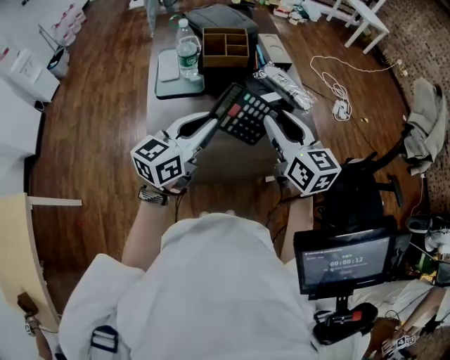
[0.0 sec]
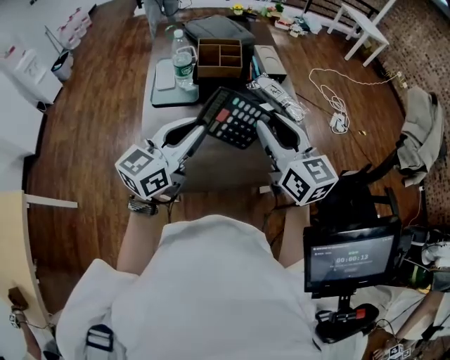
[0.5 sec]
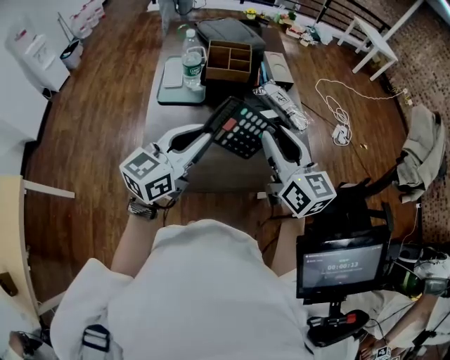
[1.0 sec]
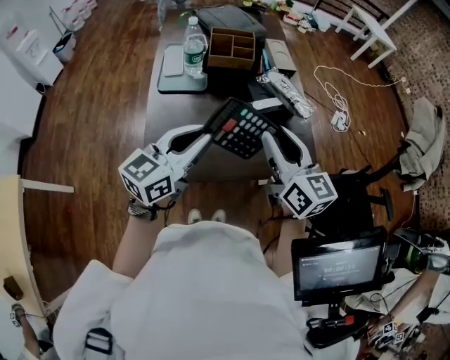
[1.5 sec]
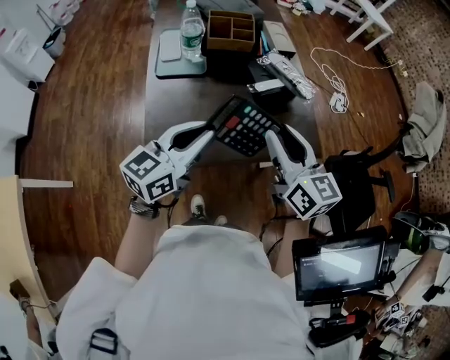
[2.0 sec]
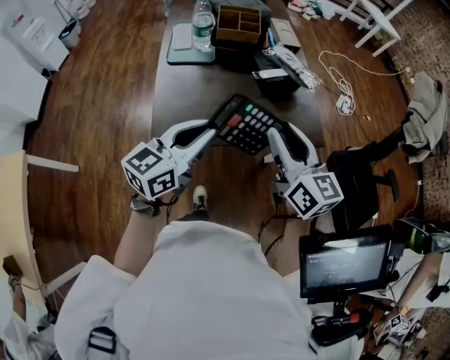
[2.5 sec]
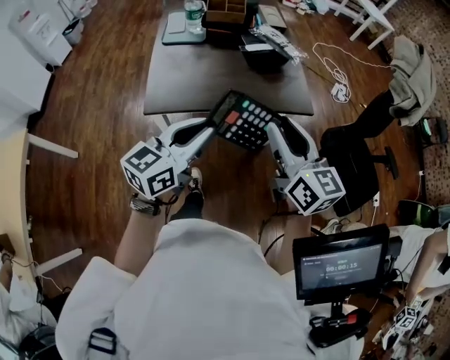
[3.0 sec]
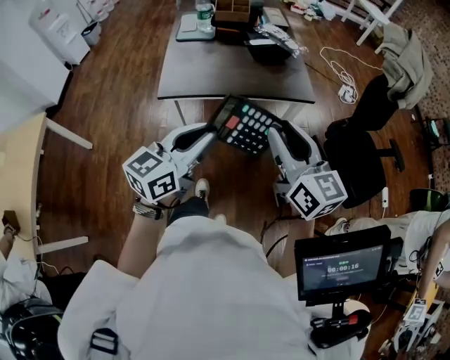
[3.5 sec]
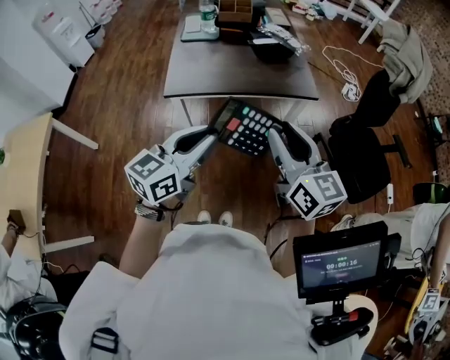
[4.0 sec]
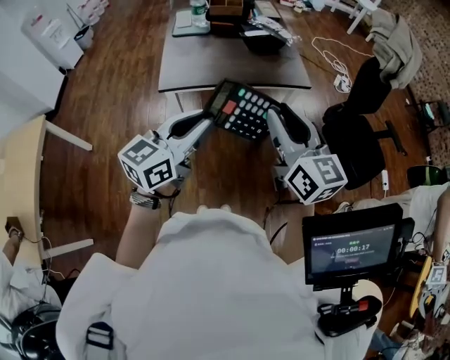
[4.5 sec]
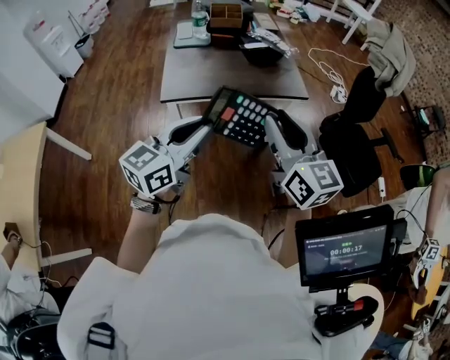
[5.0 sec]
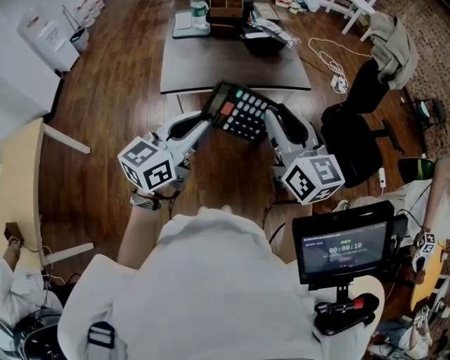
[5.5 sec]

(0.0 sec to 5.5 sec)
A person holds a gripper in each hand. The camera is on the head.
0.0 sec - 2.0 sec: Both grippers move backward, some 10 cm.
2.0 sec - 3.5 sec: Both grippers move backward and to the right, roughly 35 cm.
3.5 sec - 5.5 sec: The right gripper ends up some 5 cm from where it was.

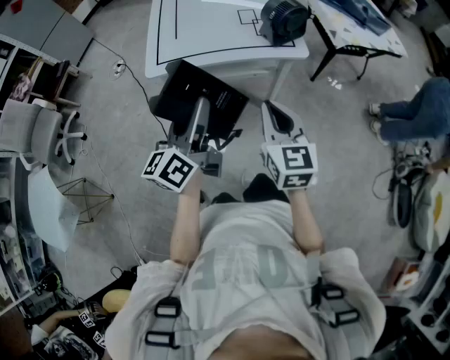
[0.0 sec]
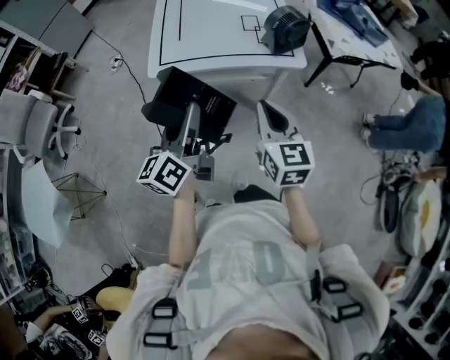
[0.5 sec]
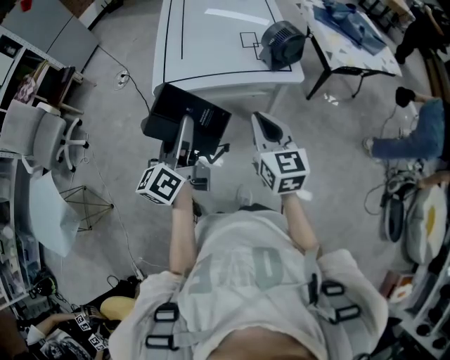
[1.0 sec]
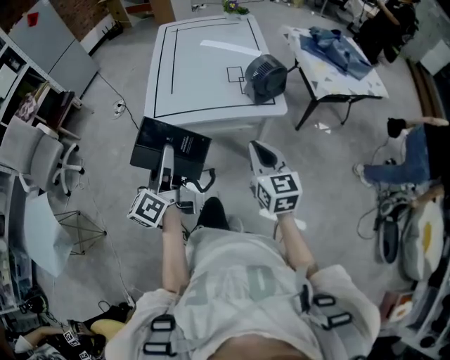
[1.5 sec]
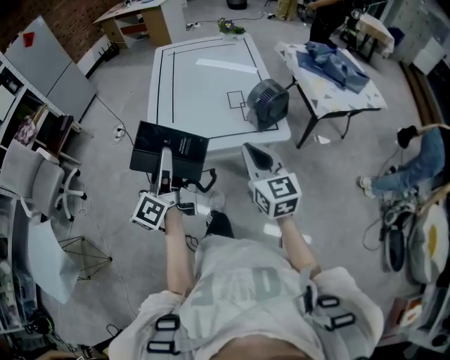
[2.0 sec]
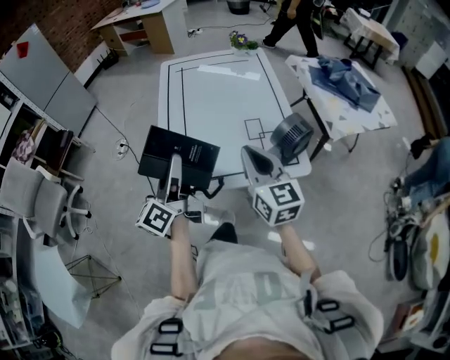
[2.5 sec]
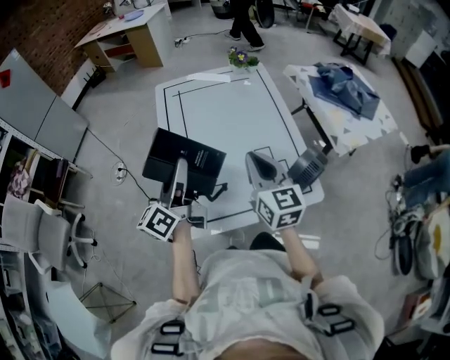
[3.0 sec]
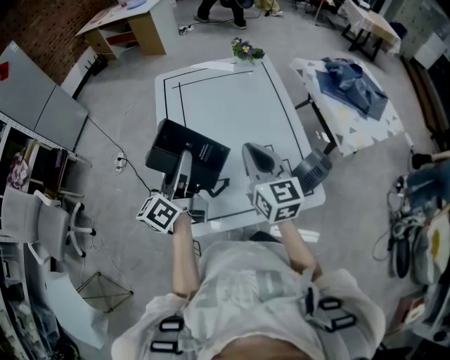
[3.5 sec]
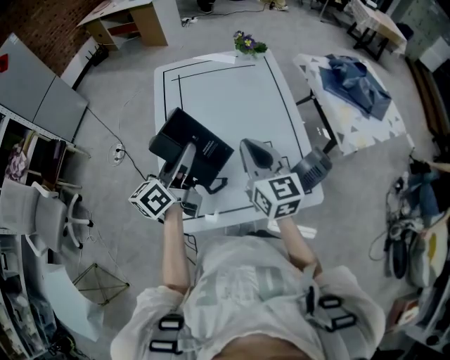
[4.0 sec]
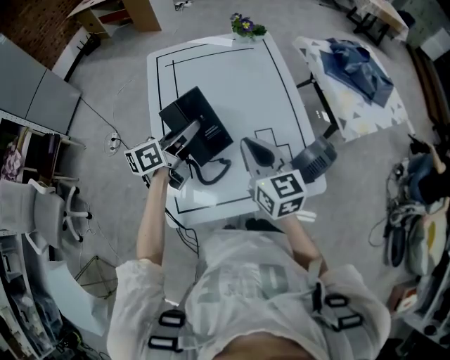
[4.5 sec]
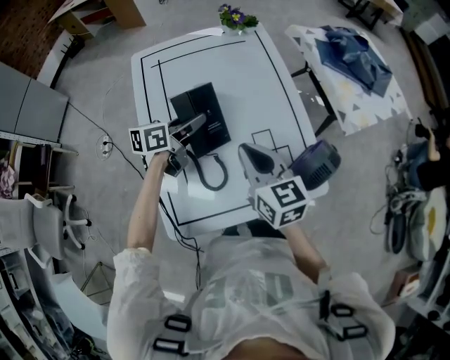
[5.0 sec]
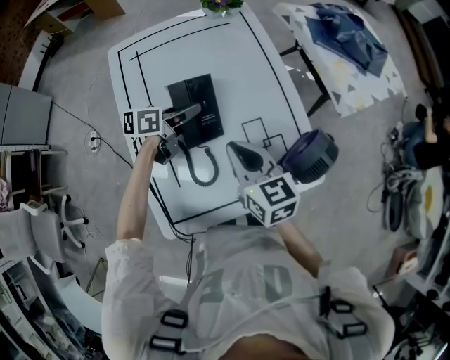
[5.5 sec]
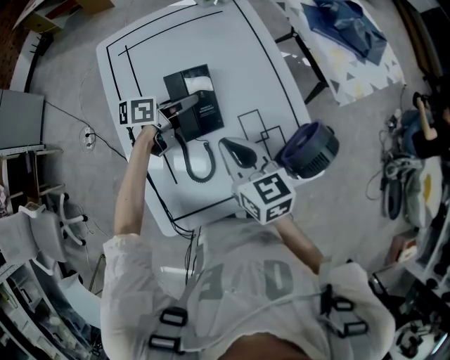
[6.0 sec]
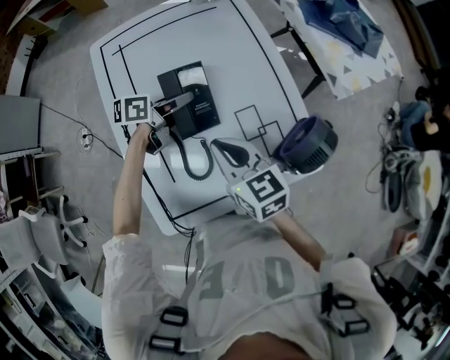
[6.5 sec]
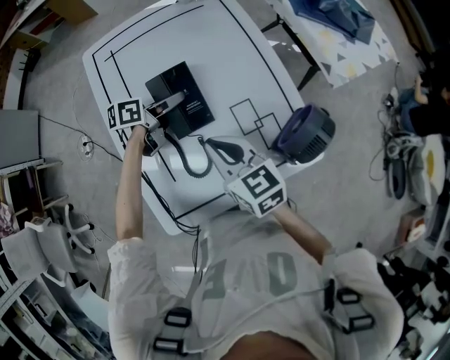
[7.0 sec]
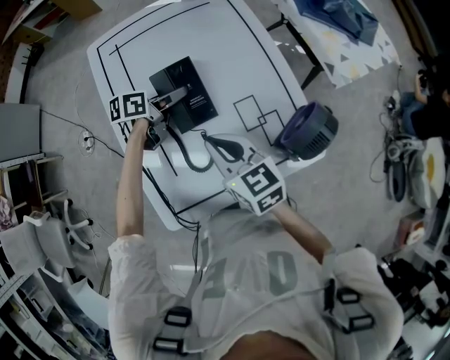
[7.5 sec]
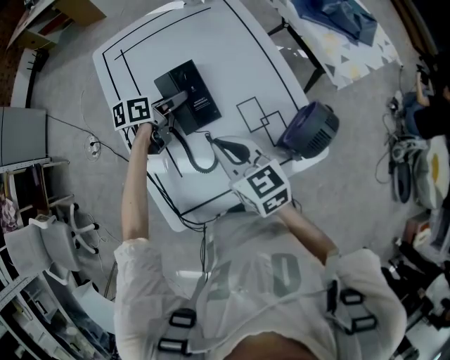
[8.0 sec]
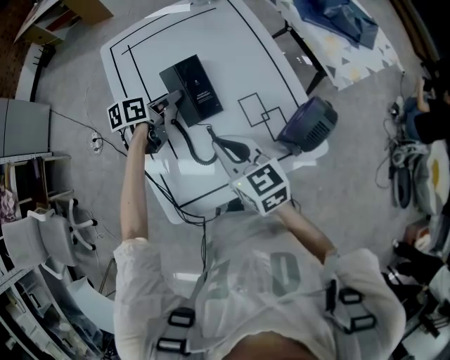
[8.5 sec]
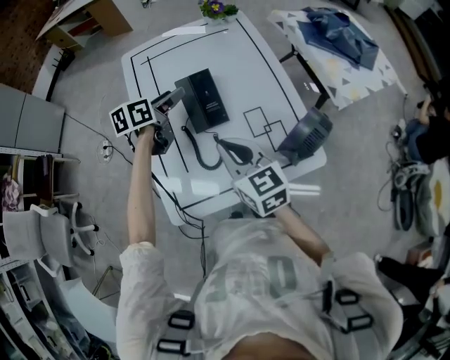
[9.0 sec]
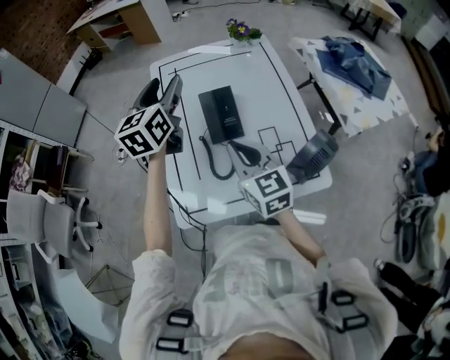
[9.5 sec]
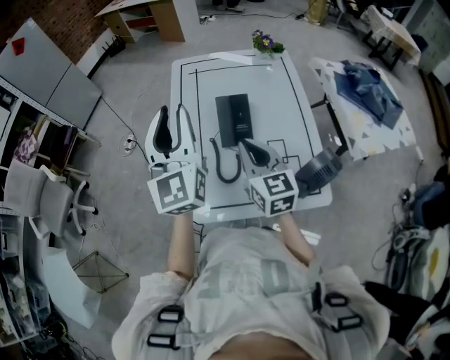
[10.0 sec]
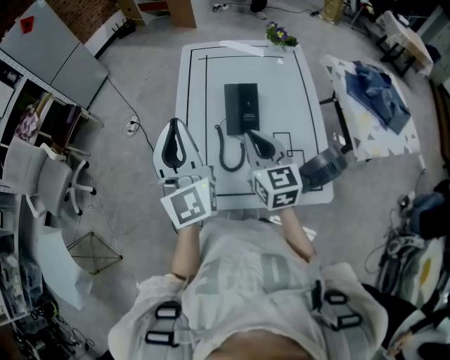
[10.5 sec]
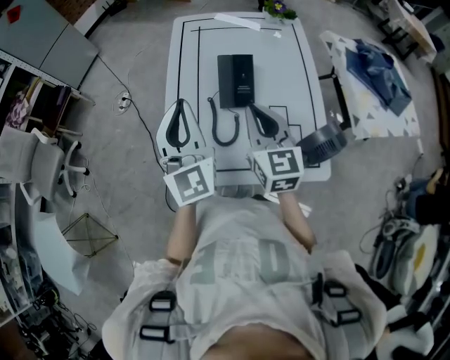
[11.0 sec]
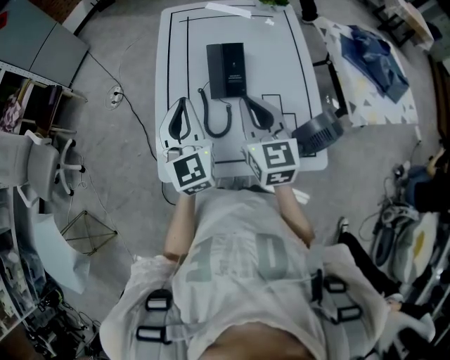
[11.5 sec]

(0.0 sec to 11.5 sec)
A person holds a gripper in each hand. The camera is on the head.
0.0 sec - 2.0 sec: The left gripper moves forward and to the left, approximately 15 cm; the right gripper moves forward and upward, about 15 cm.
2.0 sec - 4.0 sec: Both grippers move forward, approximately 35 cm. The left gripper swivels approximately 30 degrees.
4.0 sec - 6.0 sec: The left gripper goes approximately 25 cm forward and downward, and changes its angle by about 50 degrees; the right gripper heads downward, covering about 10 cm.
6.0 sec - 7.5 sec: The left gripper opens.
7.5 sec - 9.5 sec: The right gripper travels upward by roughly 5 cm. Meanwhile the left gripper goes approximately 25 cm upward, and rotates some 60 degrees.
9.5 sec - 11.5 sec: The left gripper shifts about 20 cm backward and downward, turns by about 30 degrees, and closes up.

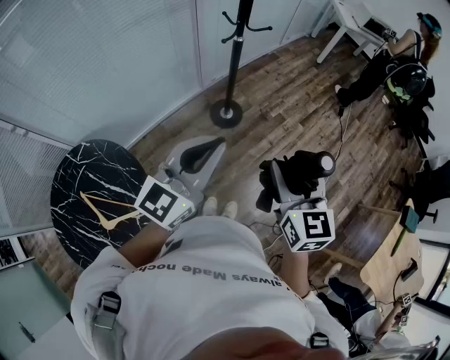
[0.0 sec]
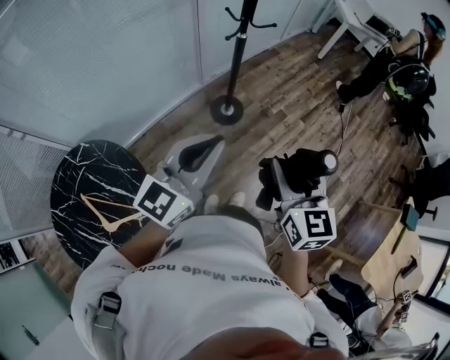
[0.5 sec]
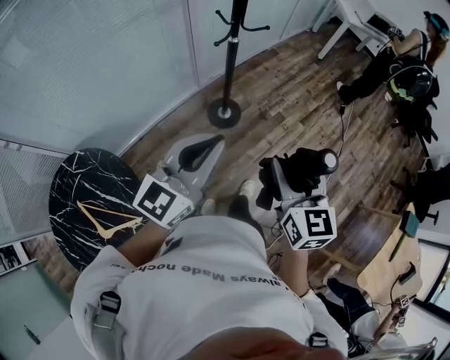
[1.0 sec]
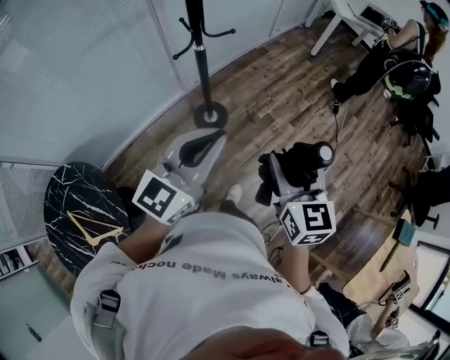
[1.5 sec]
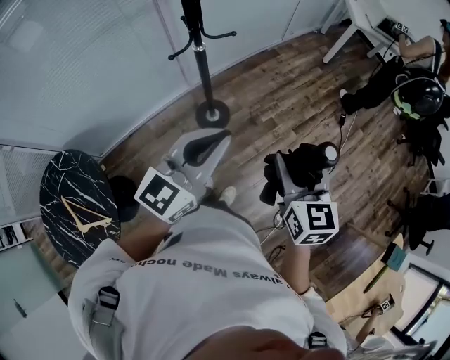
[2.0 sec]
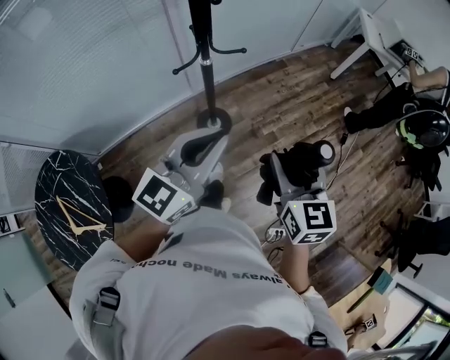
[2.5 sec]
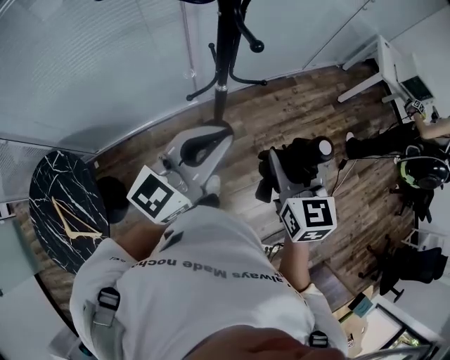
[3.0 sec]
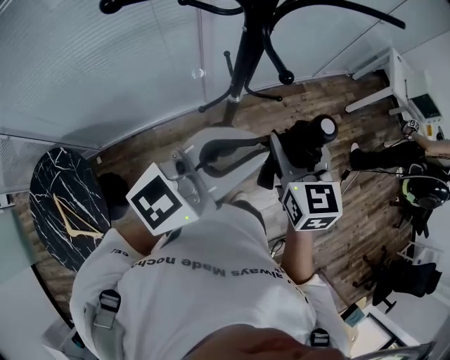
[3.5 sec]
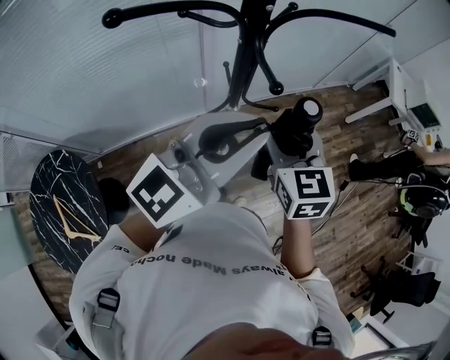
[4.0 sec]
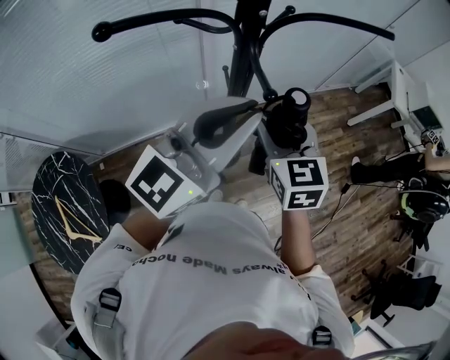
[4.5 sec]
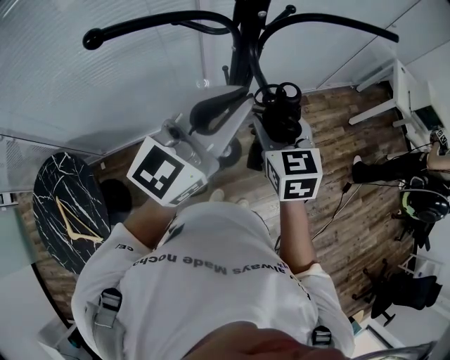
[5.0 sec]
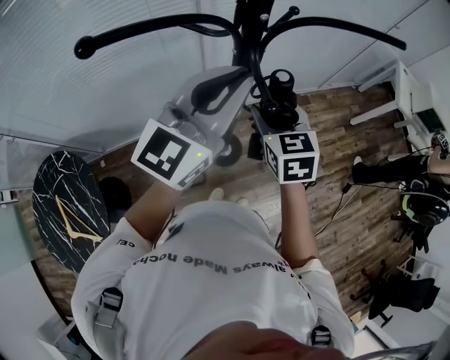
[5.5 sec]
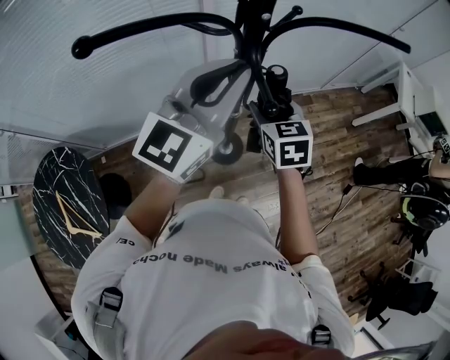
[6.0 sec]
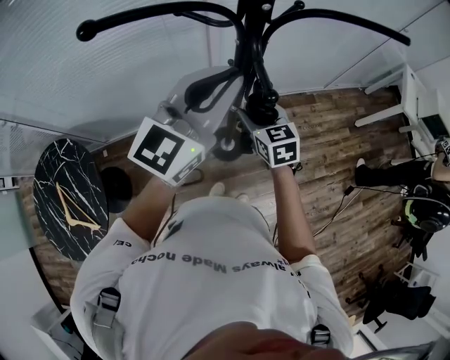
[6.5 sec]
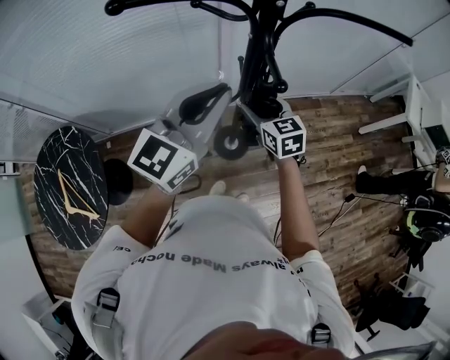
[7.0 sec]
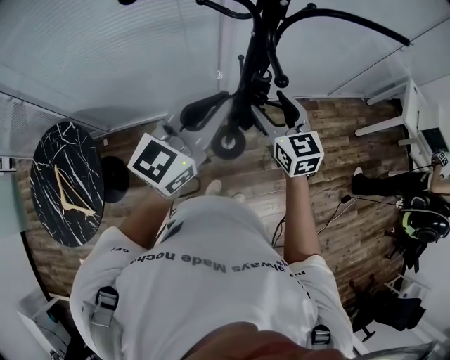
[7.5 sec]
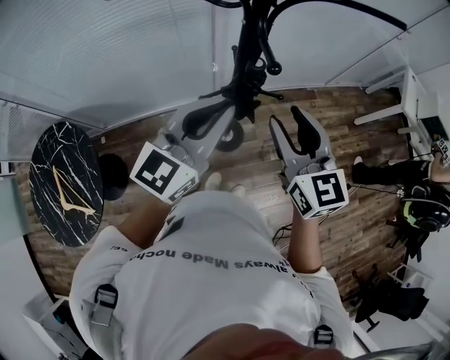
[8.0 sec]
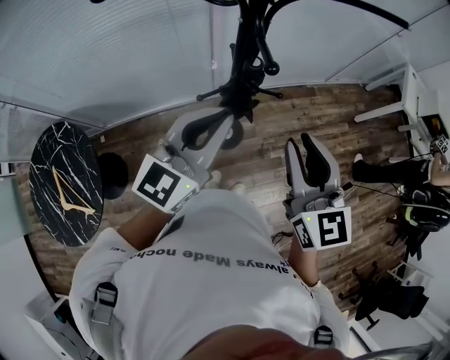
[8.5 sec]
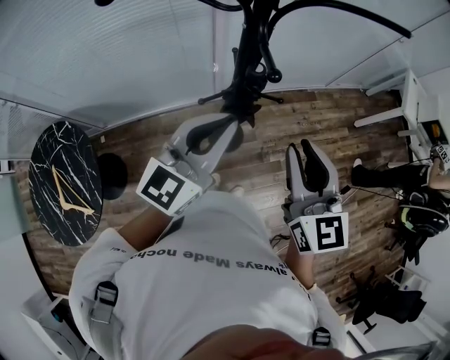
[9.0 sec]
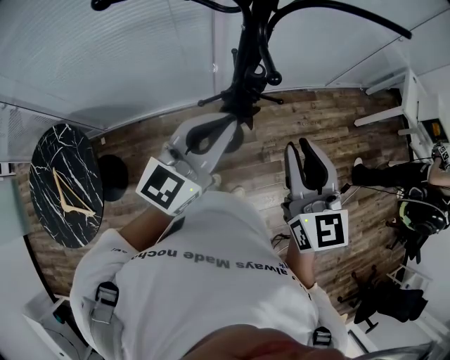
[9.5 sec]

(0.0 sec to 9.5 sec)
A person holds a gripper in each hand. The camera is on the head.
0.0 sec - 2.0 sec: The two grippers go approximately 35 cm forward and to the right.
2.0 sec - 4.0 sec: The right gripper shifts approximately 40 cm forward and to the left, and turns by roughly 20 degrees. The left gripper shifts about 30 cm forward, to the left and upward.
4.0 sec - 5.5 sec: The right gripper is displaced forward and downward by about 10 cm; the left gripper travels forward by roughly 10 cm.
5.5 sec - 7.5 sec: The right gripper travels downward and back again, about 10 cm each way, and changes its angle by some 20 degrees. The left gripper heads backward and downward, covering roughly 10 cm.
7.5 sec - 9.5 sec: The right gripper heads backward, upward and to the right, covering roughly 15 cm, and closes.
